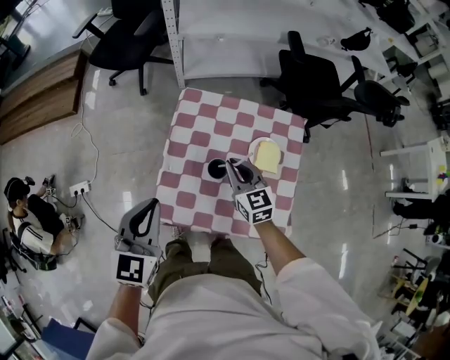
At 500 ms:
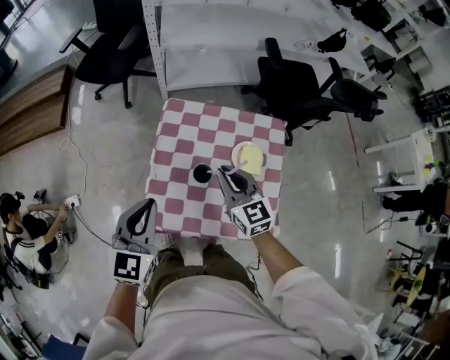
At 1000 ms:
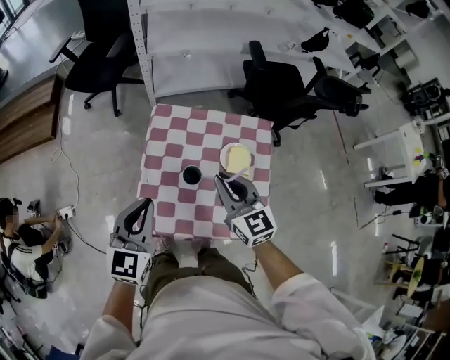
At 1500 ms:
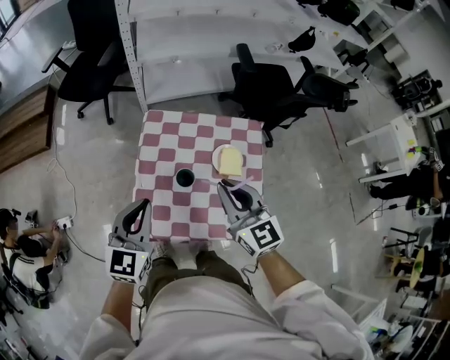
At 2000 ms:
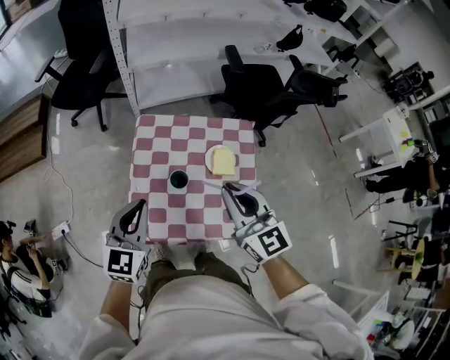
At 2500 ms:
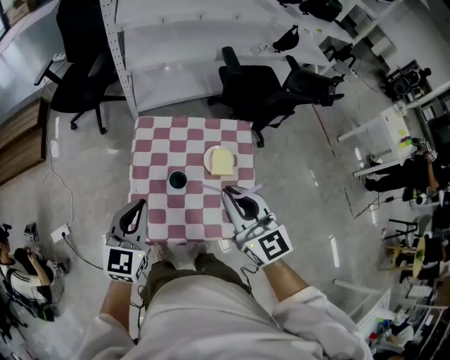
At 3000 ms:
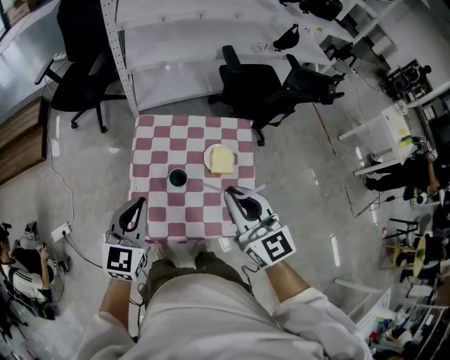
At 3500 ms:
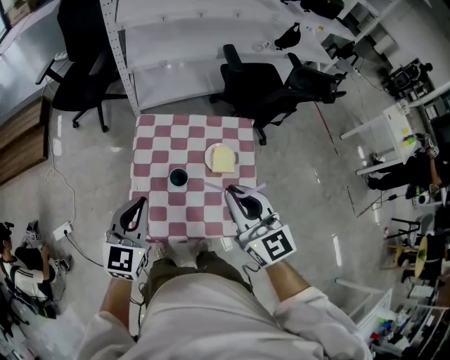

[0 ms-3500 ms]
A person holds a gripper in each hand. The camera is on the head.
0 ms to 2000 ms: The left gripper moves to the right, about 5 cm. Meanwhile the right gripper is displaced upward and backward by approximately 25 cm.
2000 ms to 3500 ms: The grippers stay close to where they were, moving slightly.

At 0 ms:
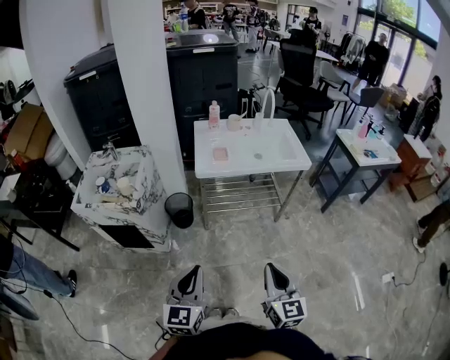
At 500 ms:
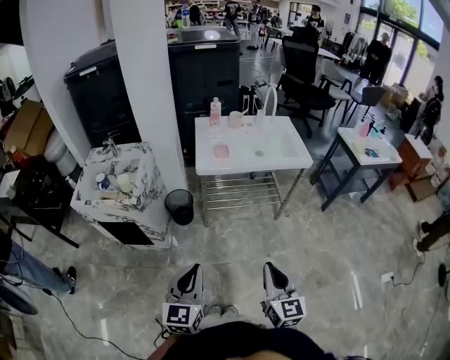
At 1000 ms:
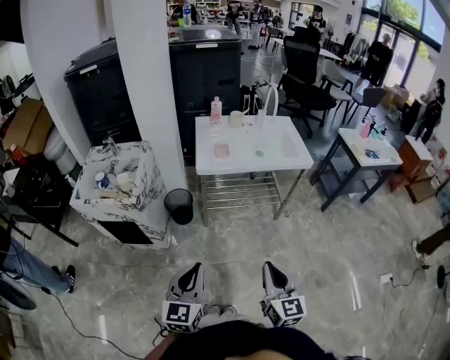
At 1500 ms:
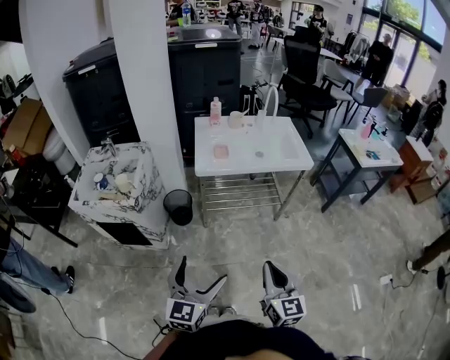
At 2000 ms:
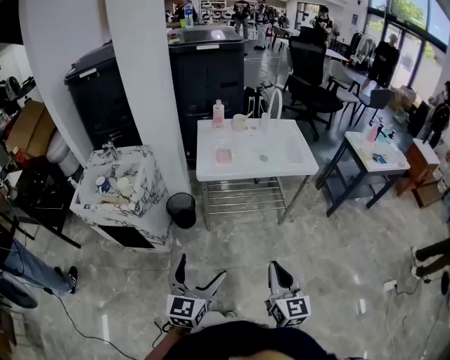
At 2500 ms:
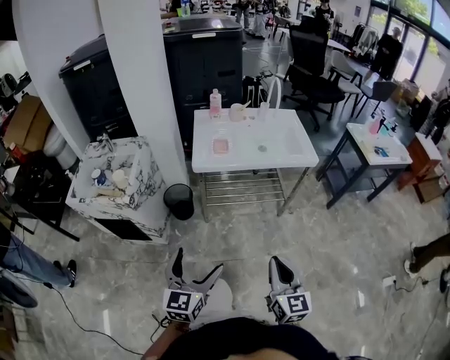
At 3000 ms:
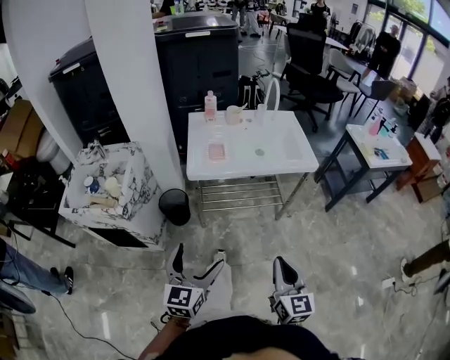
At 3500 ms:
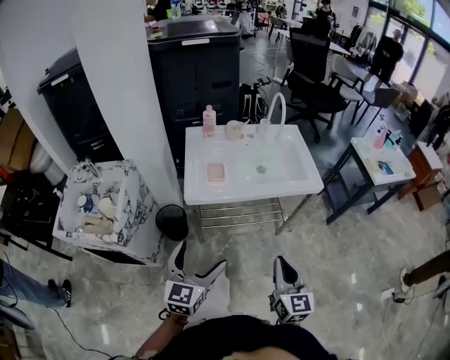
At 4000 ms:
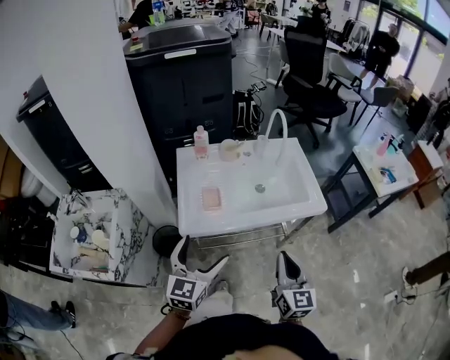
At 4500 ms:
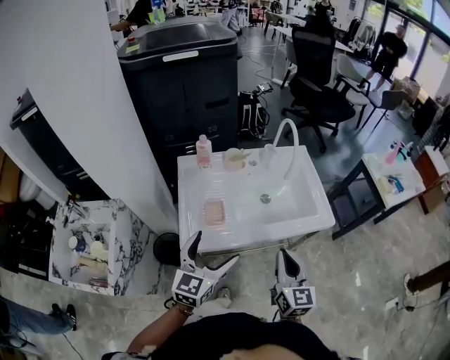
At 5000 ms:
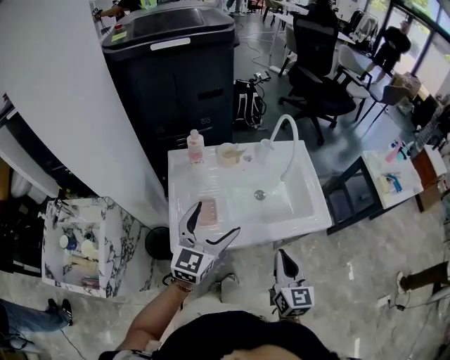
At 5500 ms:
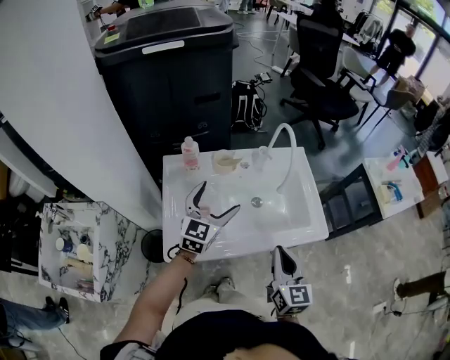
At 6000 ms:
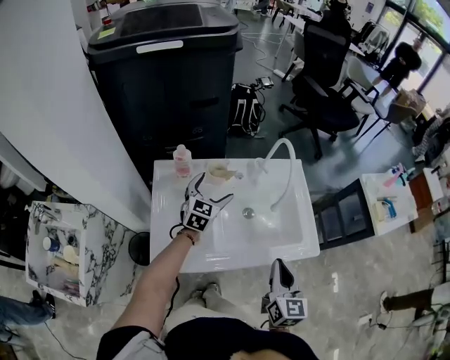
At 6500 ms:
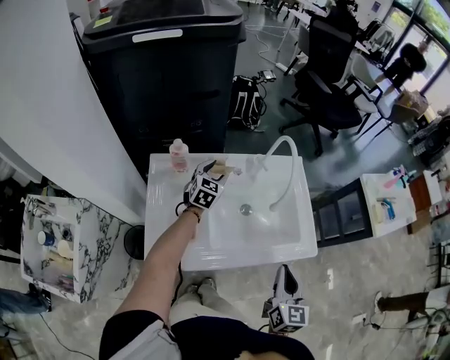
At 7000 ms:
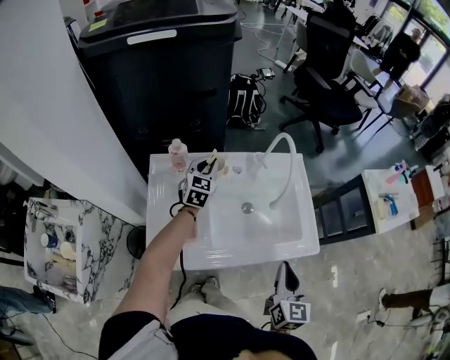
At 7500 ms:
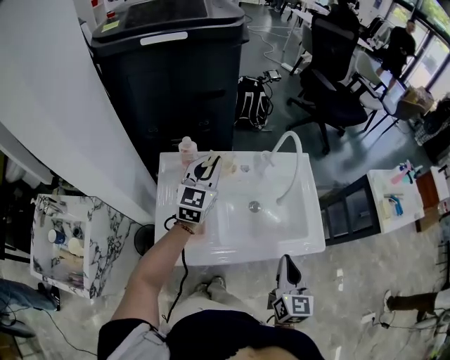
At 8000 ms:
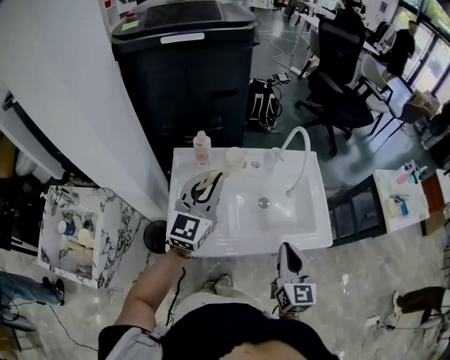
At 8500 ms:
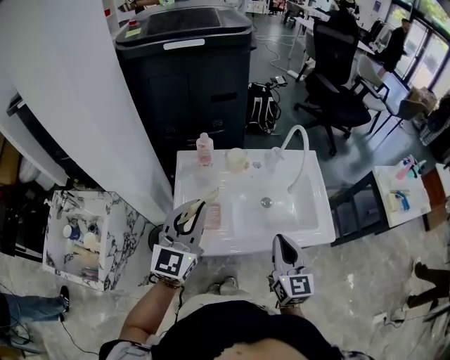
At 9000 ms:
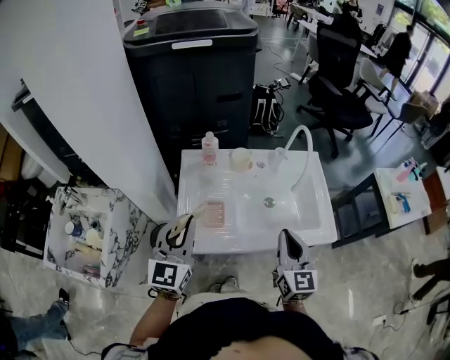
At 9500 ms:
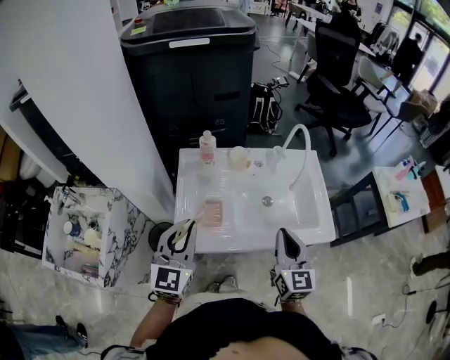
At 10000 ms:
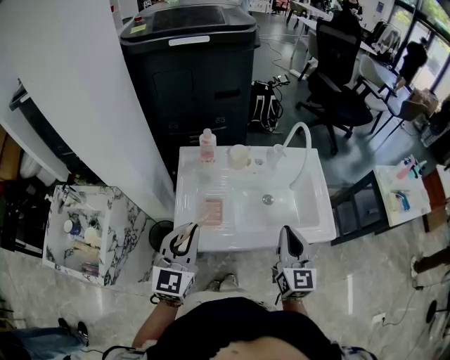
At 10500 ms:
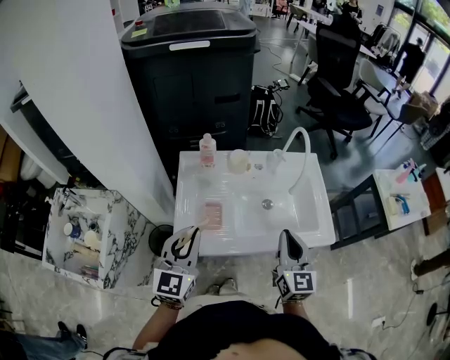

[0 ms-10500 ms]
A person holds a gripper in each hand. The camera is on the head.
0 ms to 2000 ms: The grippers both shift forward by roughly 5 cm. The left gripper opens its fingers.
2000 ms to 4000 ms: The grippers both shift forward by some 35 cm.
4000 ms to 6500 ms: The left gripper travels forward by some 50 cm, and closes its fingers. Meanwhile the right gripper heads forward, covering roughly 20 cm.
6500 ms to 8500 ms: The right gripper is displaced to the left by roughly 10 cm, while the left gripper is displaced backward and upward by roughly 35 cm, rotates roughly 30 degrees, and closes up.
8500 ms to 10500 ms: The left gripper goes approximately 10 cm downward and backward.

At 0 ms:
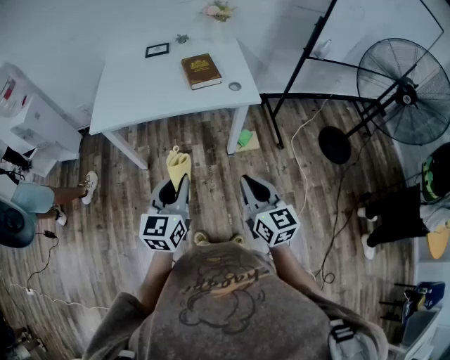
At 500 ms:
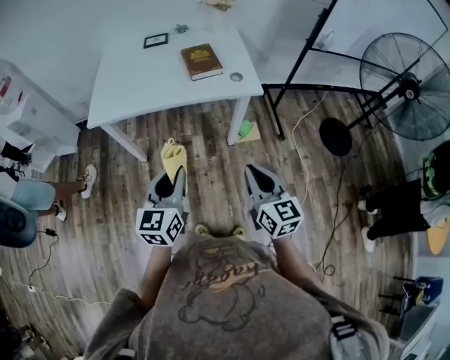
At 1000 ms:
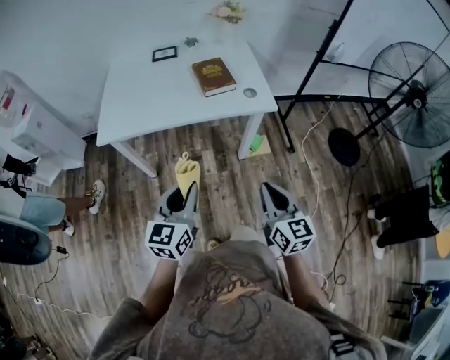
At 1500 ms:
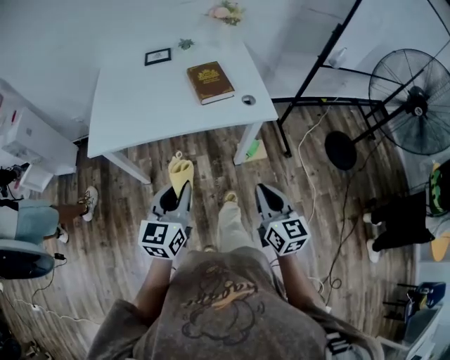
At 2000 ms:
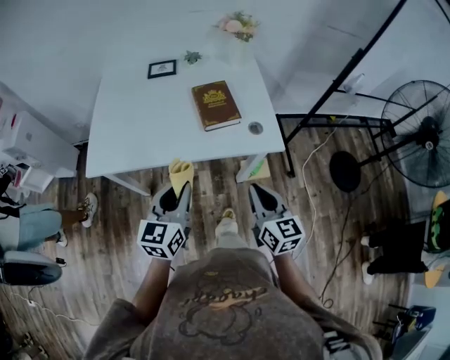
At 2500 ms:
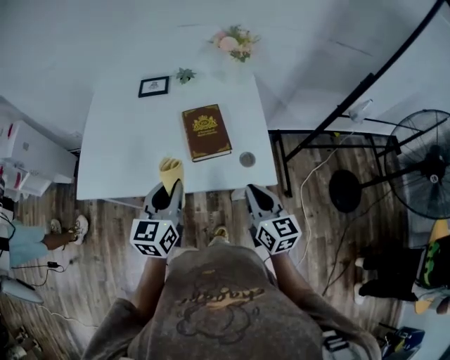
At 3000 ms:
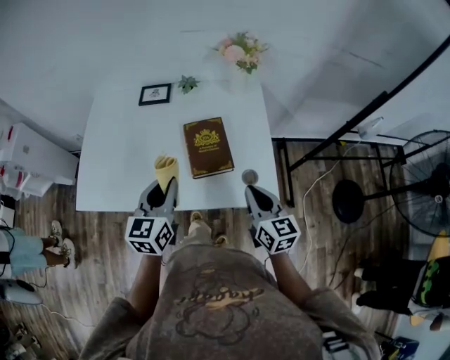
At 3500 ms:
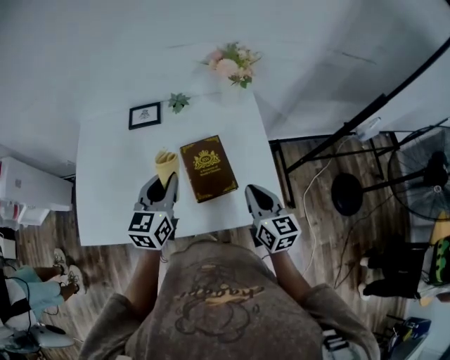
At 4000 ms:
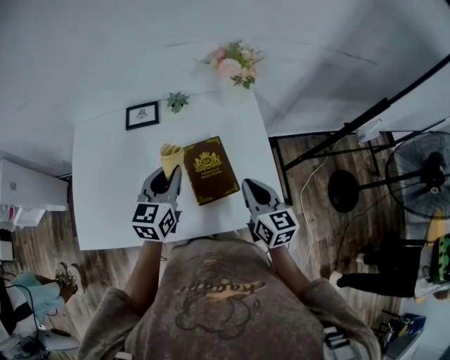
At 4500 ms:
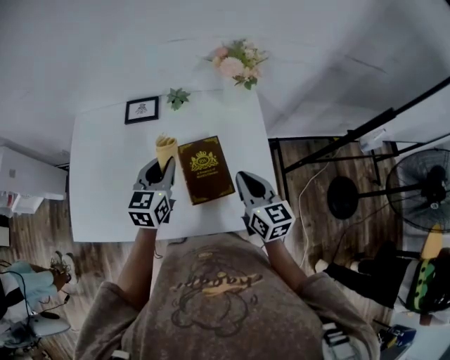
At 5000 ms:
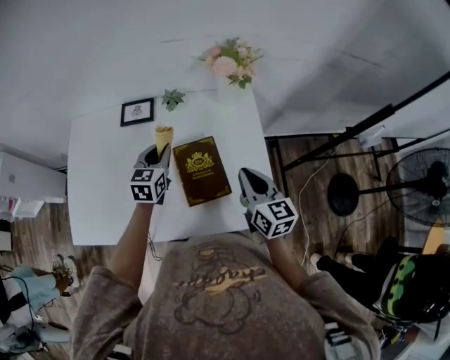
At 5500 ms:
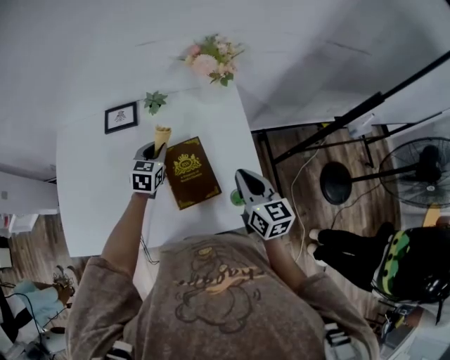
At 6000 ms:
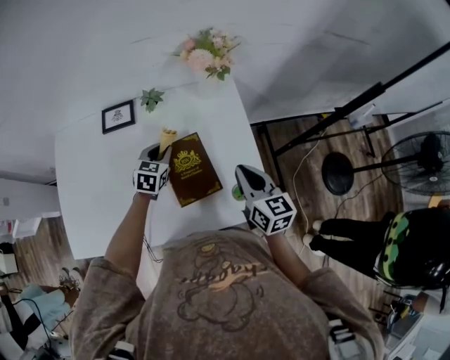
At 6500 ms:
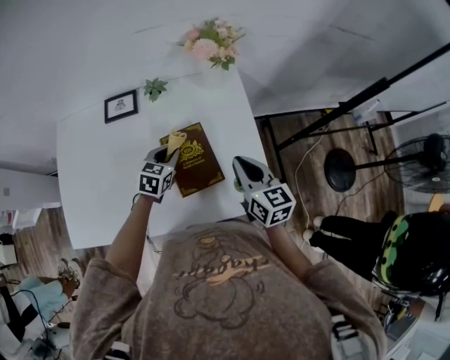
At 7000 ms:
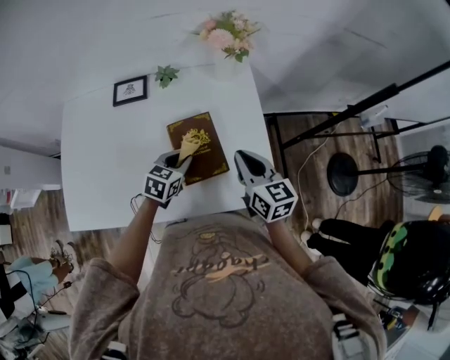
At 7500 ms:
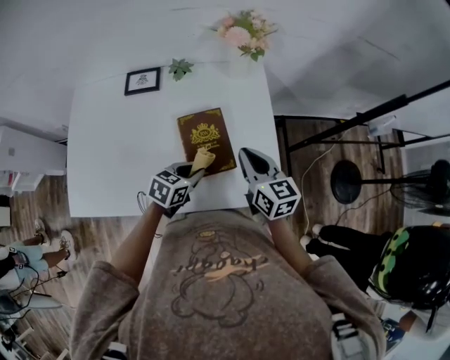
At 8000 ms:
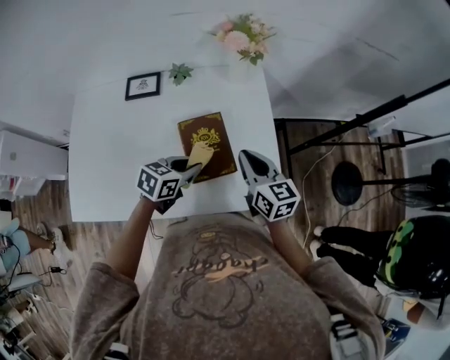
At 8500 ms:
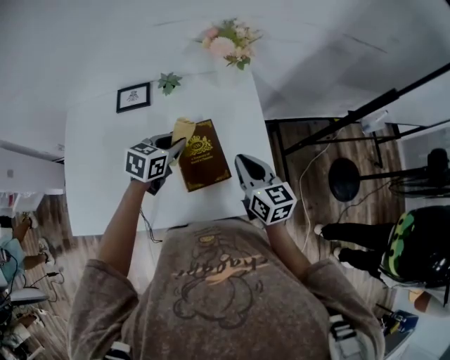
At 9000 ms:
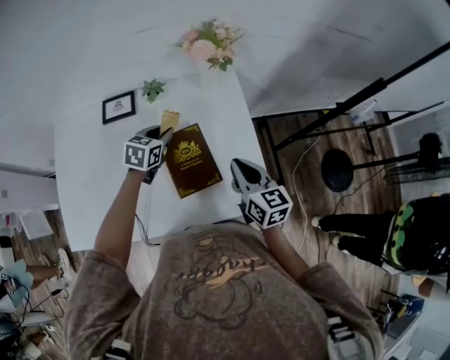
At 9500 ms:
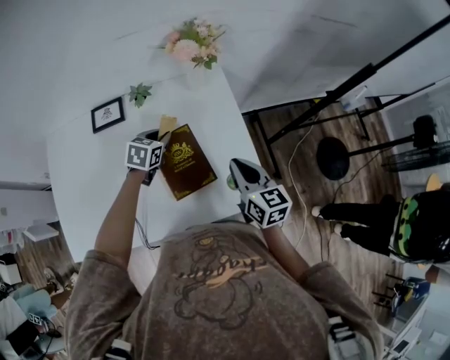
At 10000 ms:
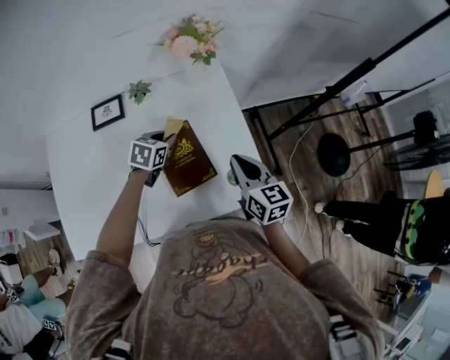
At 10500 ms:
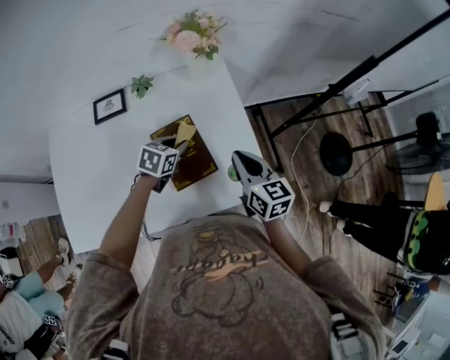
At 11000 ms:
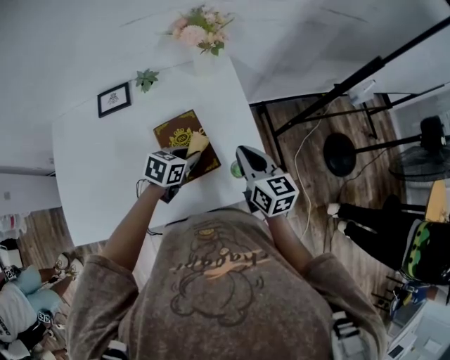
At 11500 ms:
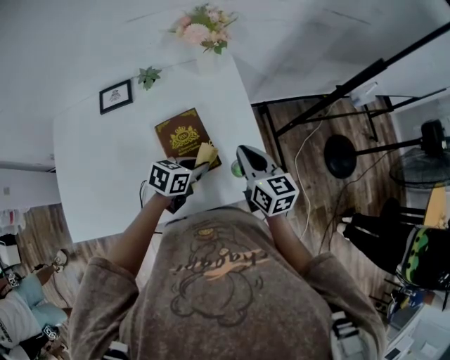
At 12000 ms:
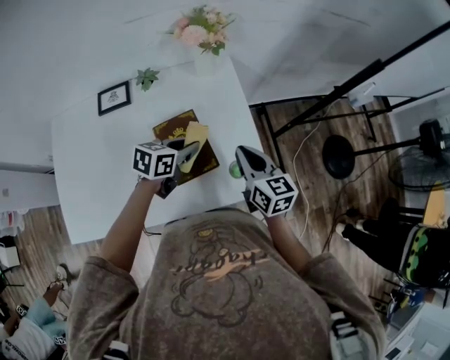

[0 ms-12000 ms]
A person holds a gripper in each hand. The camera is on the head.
0 ms to 2000 ms: Both grippers move forward, roughly 25 cm.
2000 ms to 4000 ms: Both grippers travel together forward, roughly 35 cm.
4000 ms to 6000 ms: The left gripper heads downward and forward, covering some 20 cm, and turns by roughly 30 degrees, while the right gripper shifts some 5 cm to the right.
6000 ms to 8000 ms: The left gripper goes approximately 15 cm backward and to the right, and swivels about 30 degrees.
8000 ms to 10000 ms: The left gripper goes roughly 15 cm forward, while the right gripper moves to the right, some 5 cm.
10000 ms to 12000 ms: The left gripper is displaced to the right, backward and upward by some 10 cm, and rotates approximately 20 degrees.

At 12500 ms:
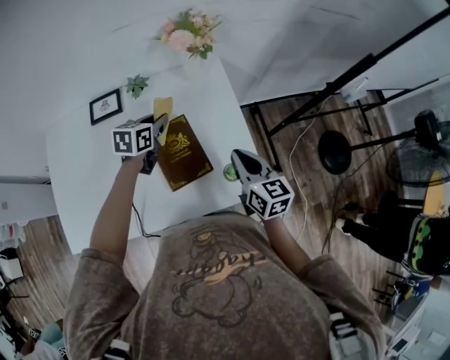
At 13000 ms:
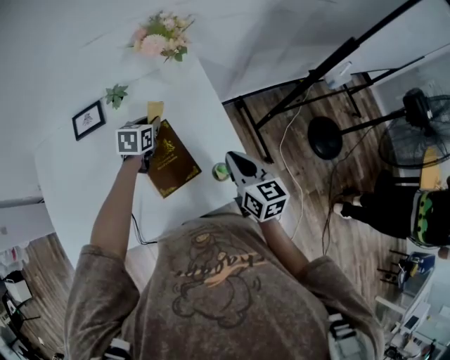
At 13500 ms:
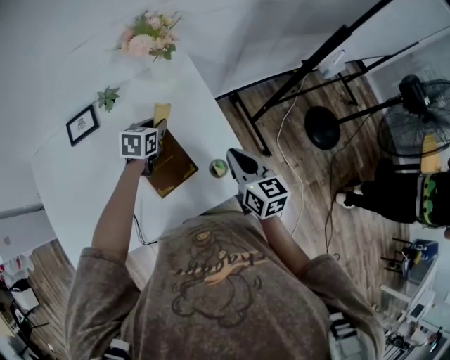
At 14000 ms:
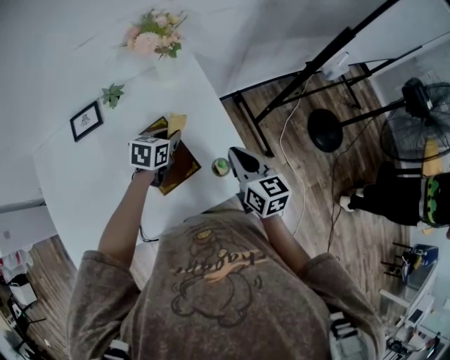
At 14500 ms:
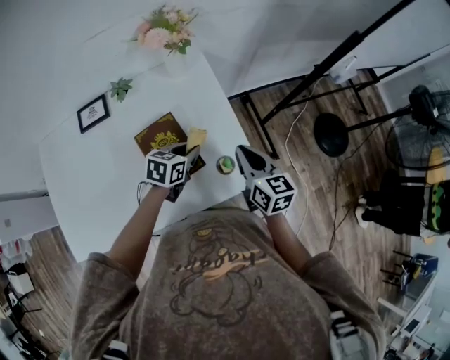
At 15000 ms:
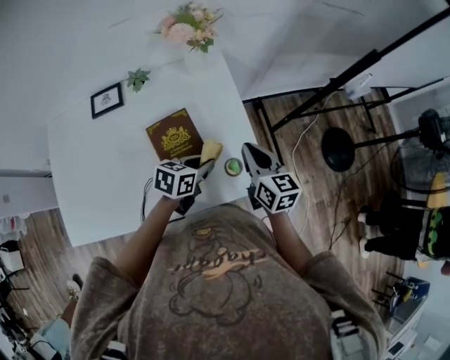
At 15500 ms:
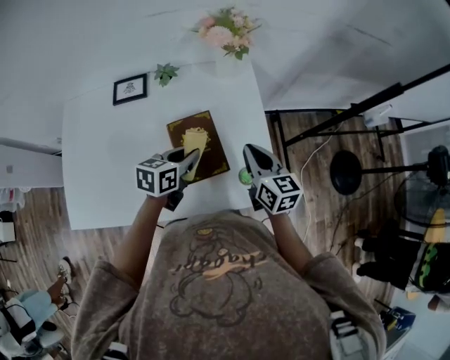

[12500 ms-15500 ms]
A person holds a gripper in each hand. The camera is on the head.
12500 ms to 14000 ms: The left gripper goes some 10 cm to the right and downward.
14000 ms to 15500 ms: The left gripper goes approximately 10 cm backward, to the left and upward, and turns by roughly 20 degrees; the right gripper goes some 5 cm to the left.
